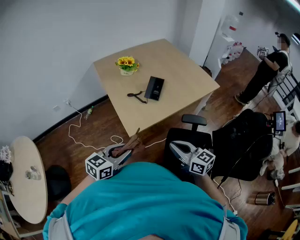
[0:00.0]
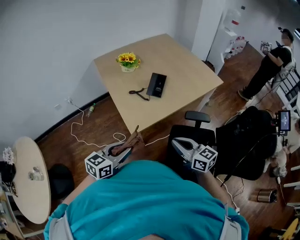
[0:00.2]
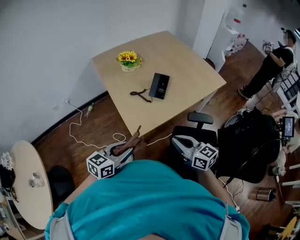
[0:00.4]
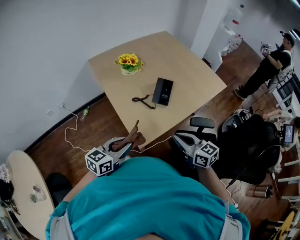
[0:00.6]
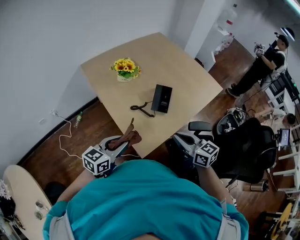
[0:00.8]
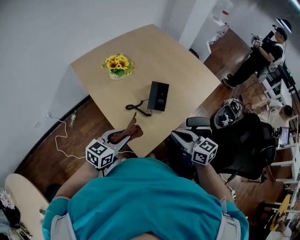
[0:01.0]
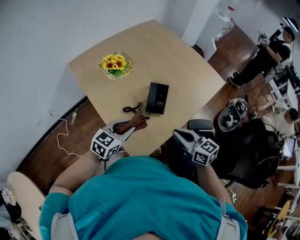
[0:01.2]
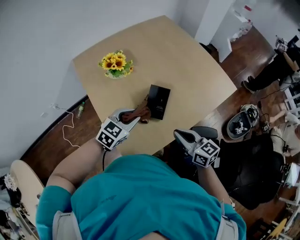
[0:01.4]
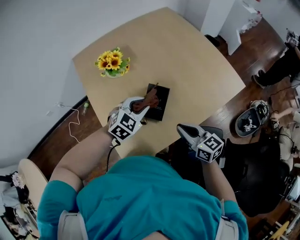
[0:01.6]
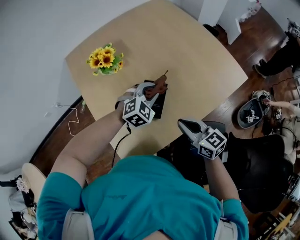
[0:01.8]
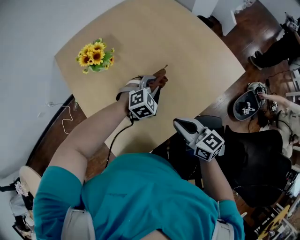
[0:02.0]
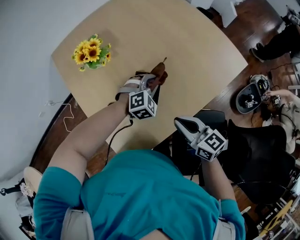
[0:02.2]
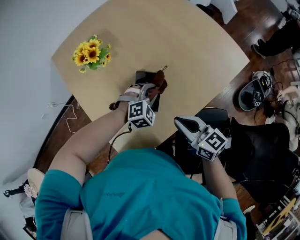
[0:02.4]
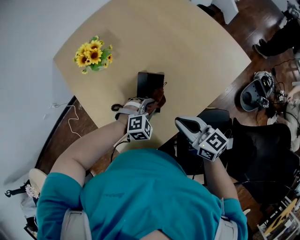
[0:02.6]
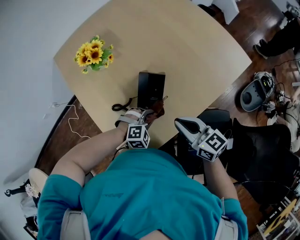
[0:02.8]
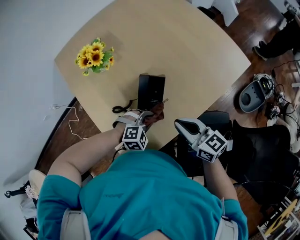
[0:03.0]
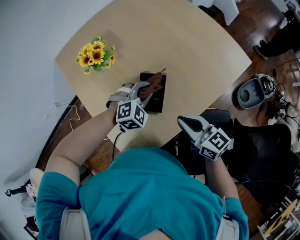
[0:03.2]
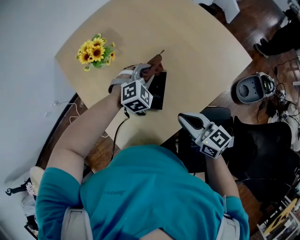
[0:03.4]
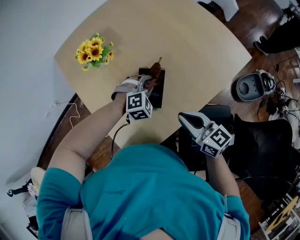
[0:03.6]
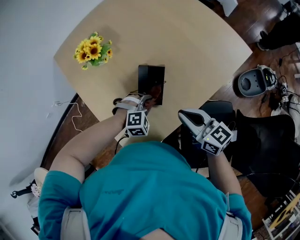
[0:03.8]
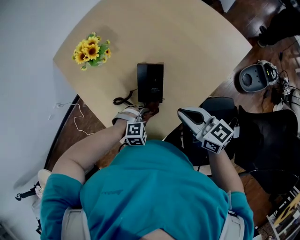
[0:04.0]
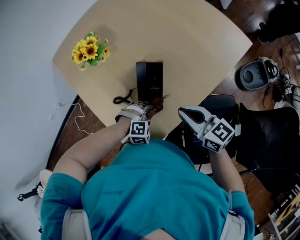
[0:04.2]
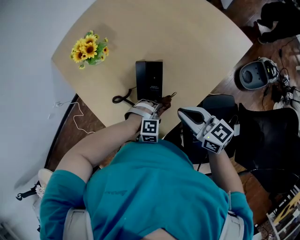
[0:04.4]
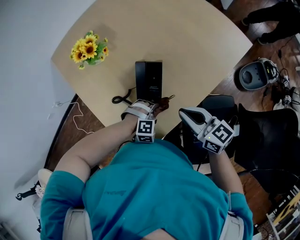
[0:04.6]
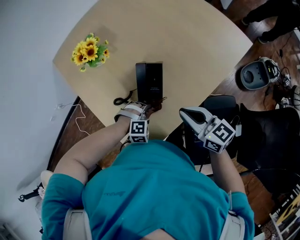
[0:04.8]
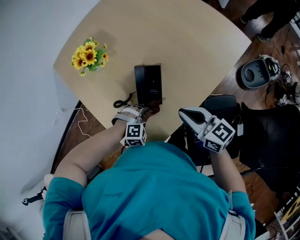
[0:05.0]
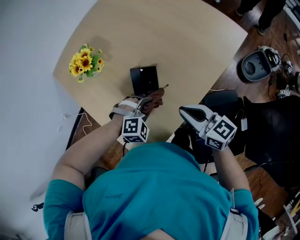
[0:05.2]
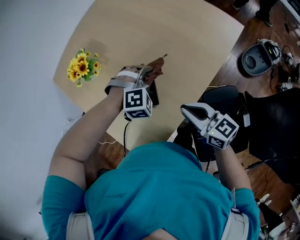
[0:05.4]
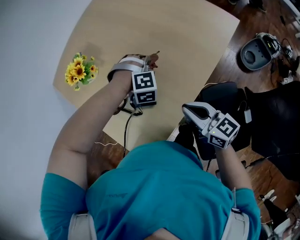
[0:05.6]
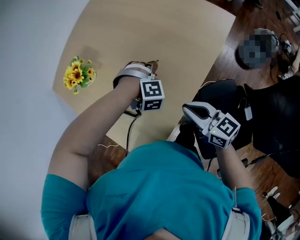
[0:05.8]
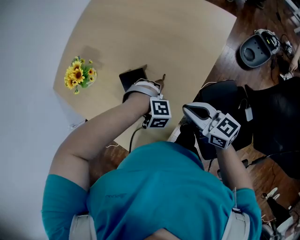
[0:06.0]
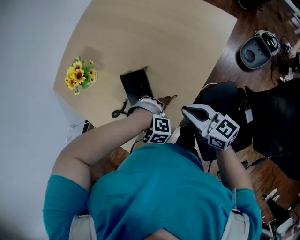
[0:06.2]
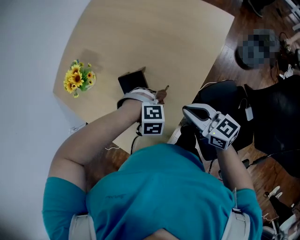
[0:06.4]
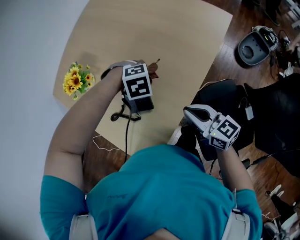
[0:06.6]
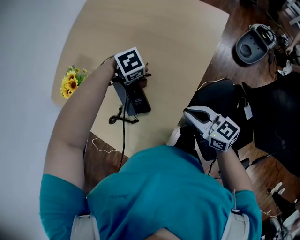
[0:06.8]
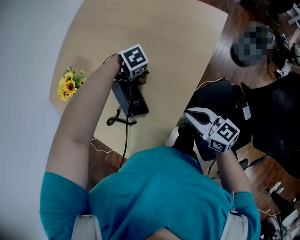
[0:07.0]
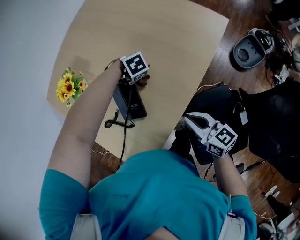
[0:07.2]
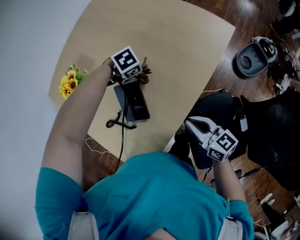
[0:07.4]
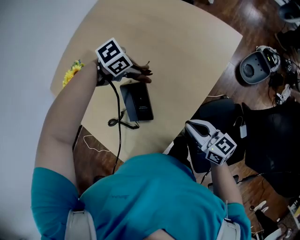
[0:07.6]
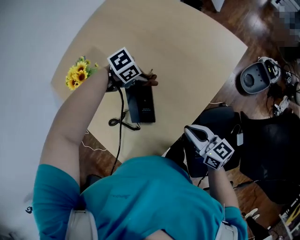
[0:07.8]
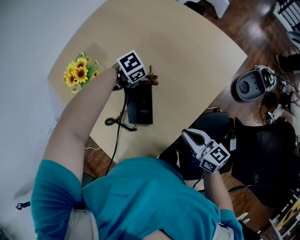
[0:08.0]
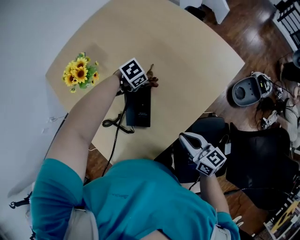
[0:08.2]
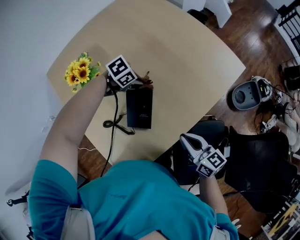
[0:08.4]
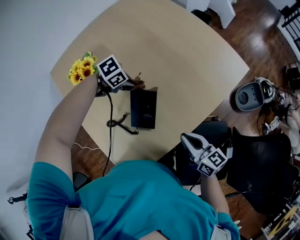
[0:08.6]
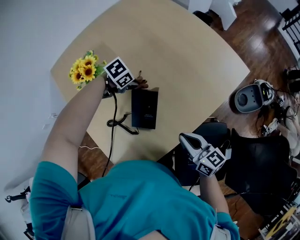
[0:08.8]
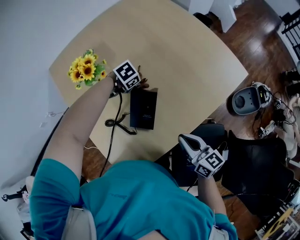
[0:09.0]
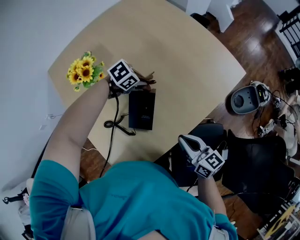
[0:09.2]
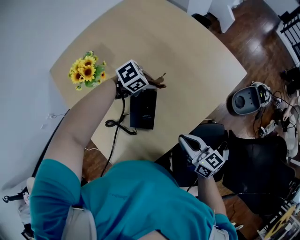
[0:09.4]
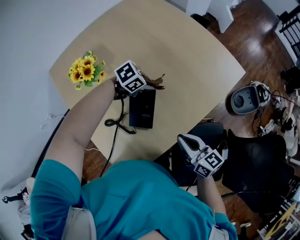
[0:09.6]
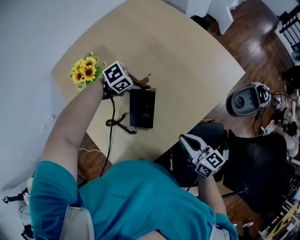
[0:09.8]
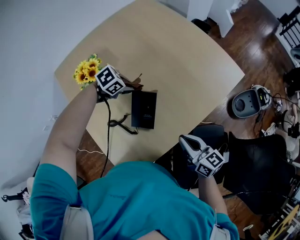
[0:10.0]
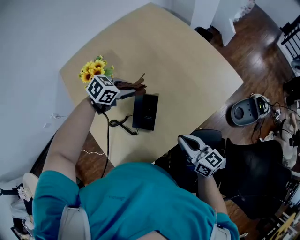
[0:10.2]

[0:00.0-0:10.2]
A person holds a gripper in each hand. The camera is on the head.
0:00.0 to 0:01.4: The grippers both shift forward by about 40 cm. The left gripper swivels about 30 degrees.
0:01.4 to 0:03.0: The left gripper is displaced downward and to the right by roughly 20 cm, and changes its angle by some 50 degrees. Meanwhile the right gripper is displaced forward by roughly 5 cm.
0:03.0 to 0:04.4: The left gripper heads downward, covering approximately 5 cm, and goes forward and returns, about 20 cm each way.
0:04.4 to 0:05.8: The right gripper goes approximately 5 cm to the right; the left gripper goes approximately 20 cm forward, to the right and upward, and swivels approximately 30 degrees.
0:05.8 to 0:07.2: The left gripper goes up and down, some 10 cm each way, reversing 2 times, and swivels some 50 degrees, while the right gripper ends up about 5 cm from where it was.
0:07.2 to 0:08.8: The right gripper changes place by approximately 5 cm; the left gripper swings up and down, roughly 10 cm each way, with 2 reversals, and turns by approximately 40 degrees.
0:08.8 to 0:10.2: The left gripper moves upward, roughly 10 cm, and rotates approximately 30 degrees.

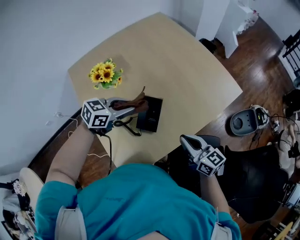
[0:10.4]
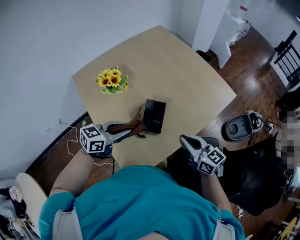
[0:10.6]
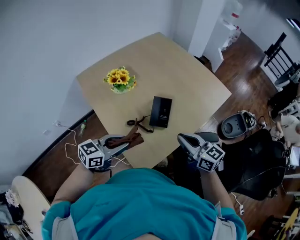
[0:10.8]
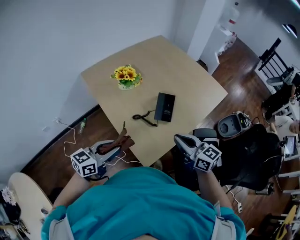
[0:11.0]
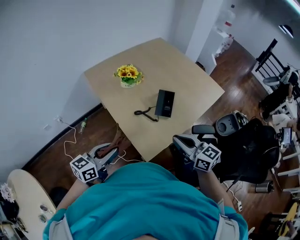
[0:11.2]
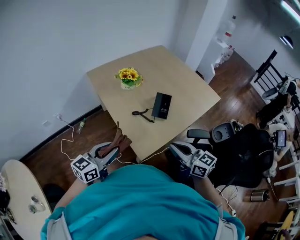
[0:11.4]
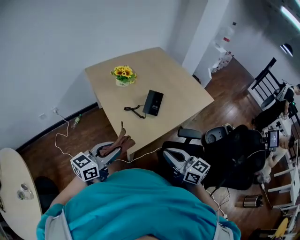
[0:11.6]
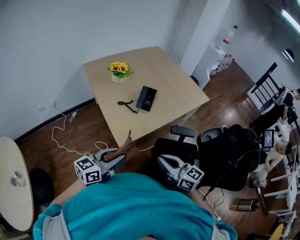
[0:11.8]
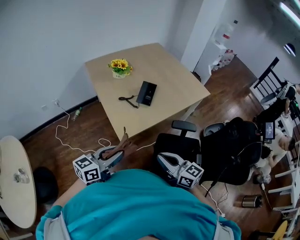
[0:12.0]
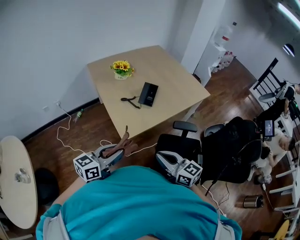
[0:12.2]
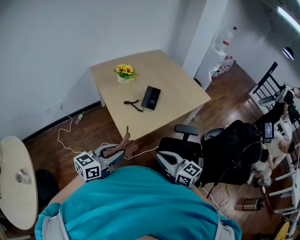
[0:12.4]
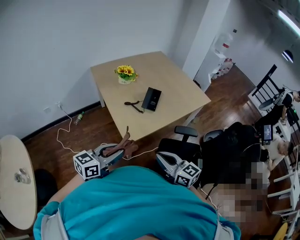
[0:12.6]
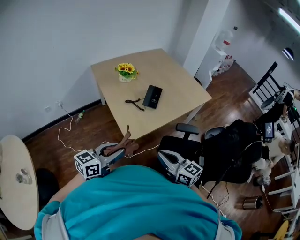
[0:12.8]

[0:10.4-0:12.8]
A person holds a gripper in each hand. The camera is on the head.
0:10.4 to 0:11.6: The two grippers go about 40 cm backward. The left gripper turns by about 30 degrees.
0:11.6 to 0:12.8: Both grippers travel together backward, roughly 10 cm.

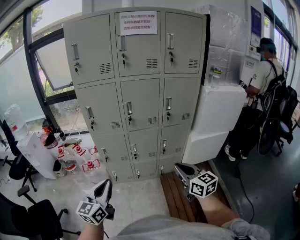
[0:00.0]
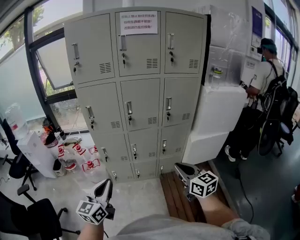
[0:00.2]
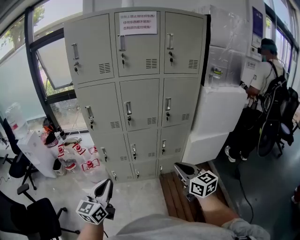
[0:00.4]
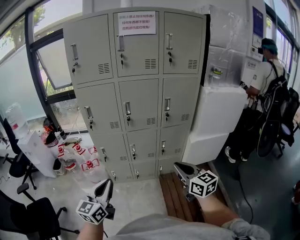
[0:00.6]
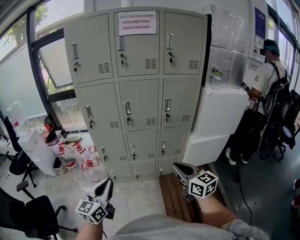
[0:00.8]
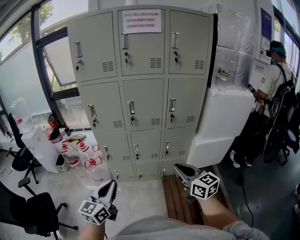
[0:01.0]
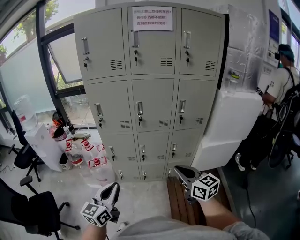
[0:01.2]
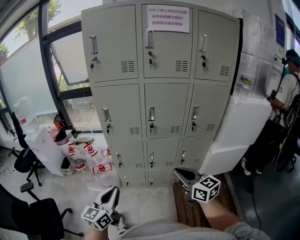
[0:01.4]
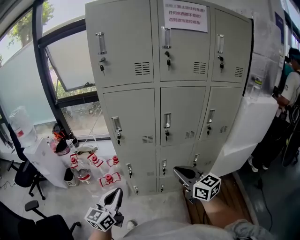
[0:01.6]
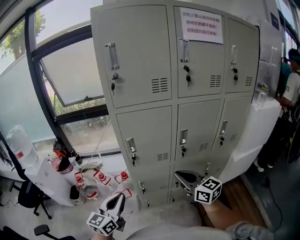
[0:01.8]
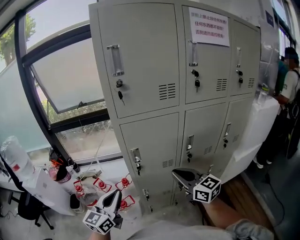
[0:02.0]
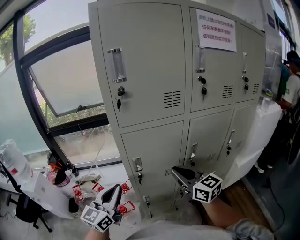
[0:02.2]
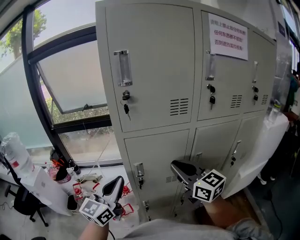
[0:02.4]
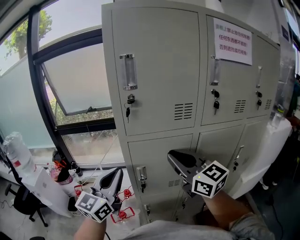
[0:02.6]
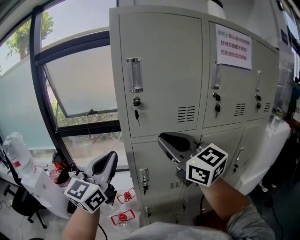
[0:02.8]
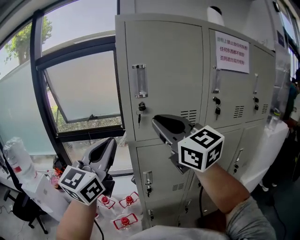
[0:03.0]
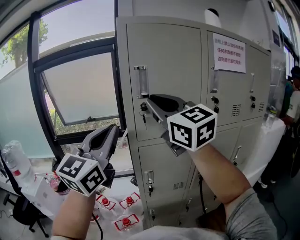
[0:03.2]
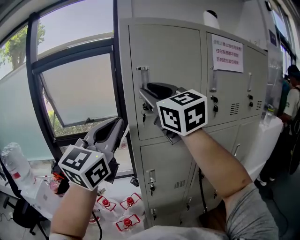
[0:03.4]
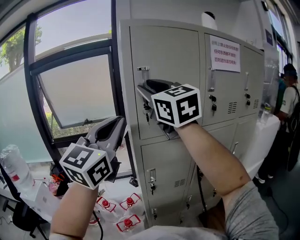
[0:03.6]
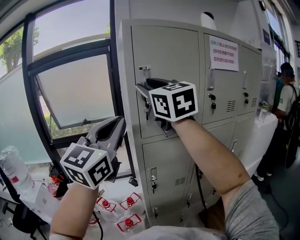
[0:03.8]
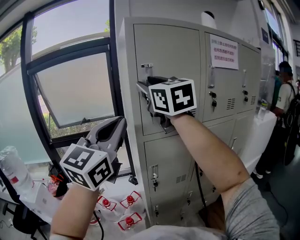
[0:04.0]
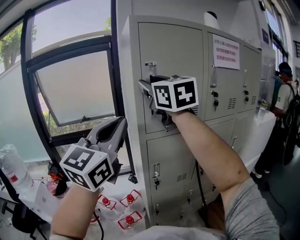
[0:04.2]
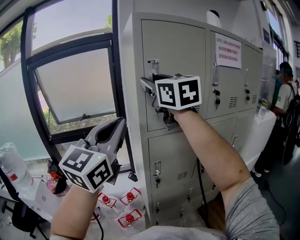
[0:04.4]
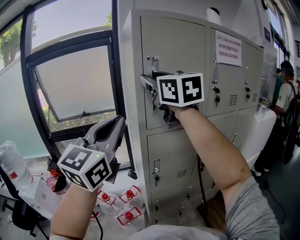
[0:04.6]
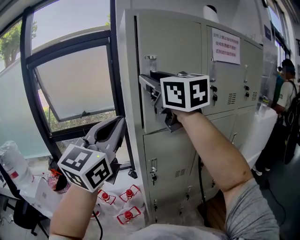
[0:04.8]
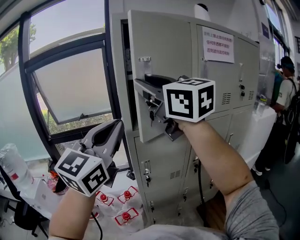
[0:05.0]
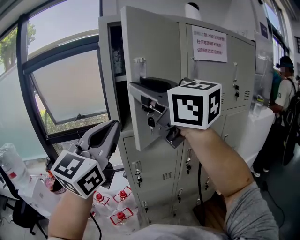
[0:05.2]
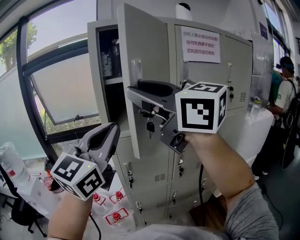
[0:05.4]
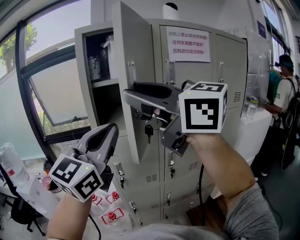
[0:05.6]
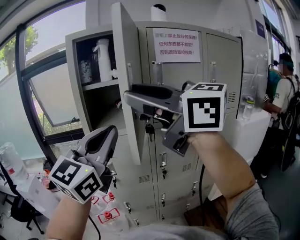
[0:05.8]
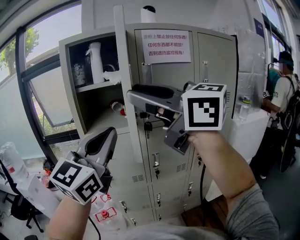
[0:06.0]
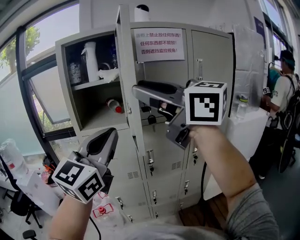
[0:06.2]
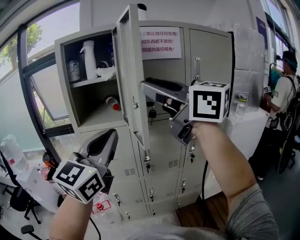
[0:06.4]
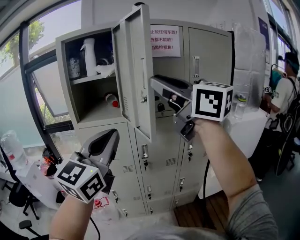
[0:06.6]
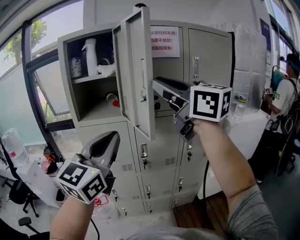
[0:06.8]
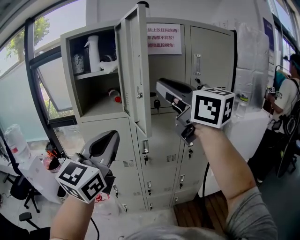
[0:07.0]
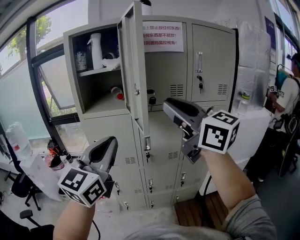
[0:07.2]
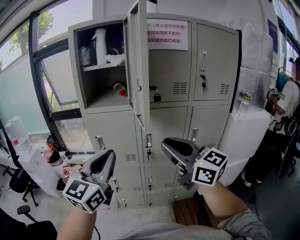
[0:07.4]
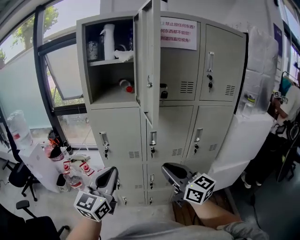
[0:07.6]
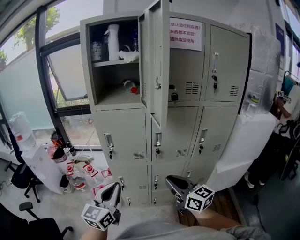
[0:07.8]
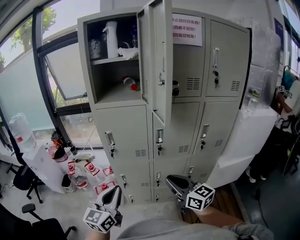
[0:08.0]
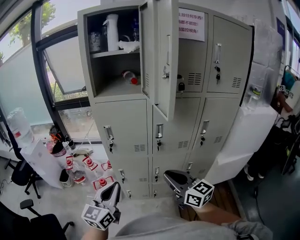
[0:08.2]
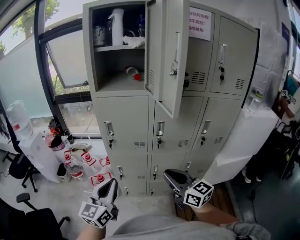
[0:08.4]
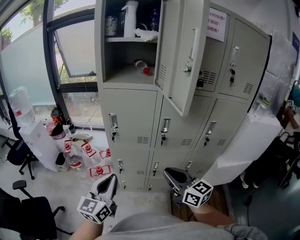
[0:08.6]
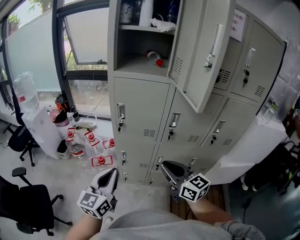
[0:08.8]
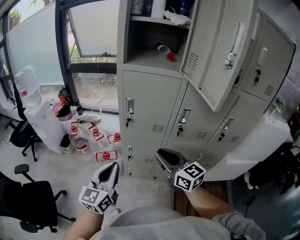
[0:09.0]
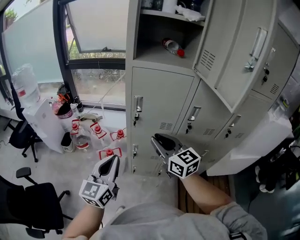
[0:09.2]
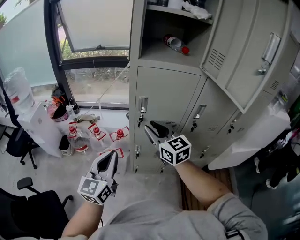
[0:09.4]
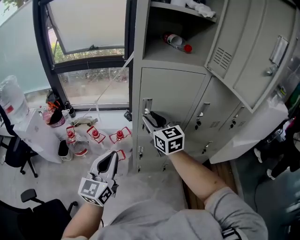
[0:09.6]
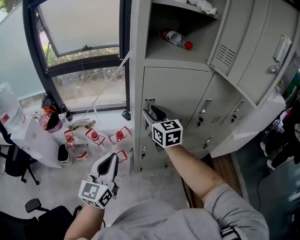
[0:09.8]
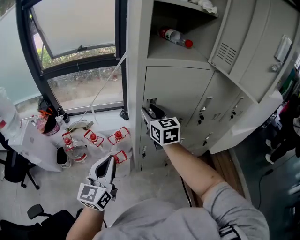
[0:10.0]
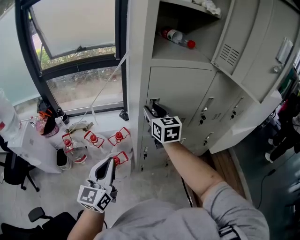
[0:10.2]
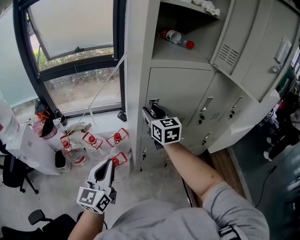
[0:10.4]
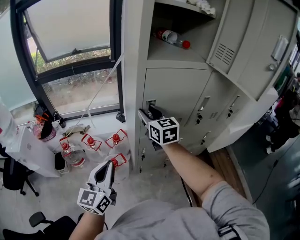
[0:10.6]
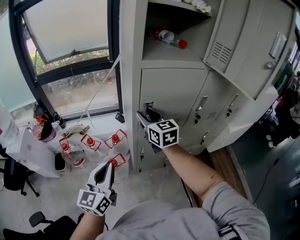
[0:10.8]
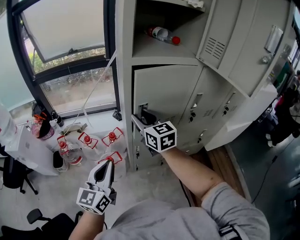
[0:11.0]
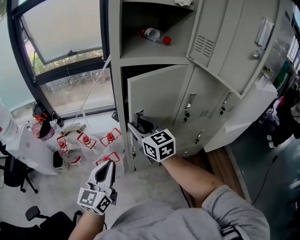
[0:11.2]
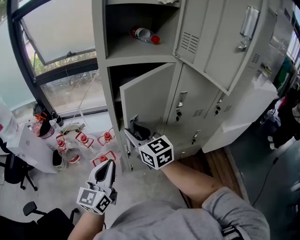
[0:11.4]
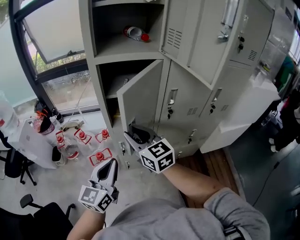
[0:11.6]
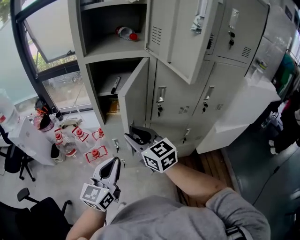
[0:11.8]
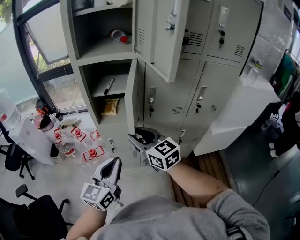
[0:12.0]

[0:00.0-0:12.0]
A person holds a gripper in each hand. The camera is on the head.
0:00.0 to 0:01.6: The grippers both shift forward and to the left by about 25 cm.
0:01.6 to 0:03.0: The right gripper goes roughly 50 cm upward, forward and to the left, and changes its angle by roughly 30 degrees. Meanwhile the left gripper goes roughly 50 cm upward and forward, and swivels approximately 30 degrees.
0:03.0 to 0:04.4: The left gripper changes place by roughly 5 cm. Meanwhile the right gripper goes some 15 cm upward, to the left and forward, and opens.
0:04.4 to 0:06.0: The left gripper moves to the right, roughly 25 cm. Meanwhile the right gripper moves to the right and backward, about 35 cm, and changes its angle by about 40 degrees.
0:06.0 to 0:07.6: Both grippers travel together downward, approximately 30 cm. The left gripper turns by some 20 degrees.
0:07.6 to 0:09.0: The right gripper travels to the left, downward and forward by approximately 20 cm. Meanwhile the left gripper moves downward and to the left, some 15 cm.
0:09.0 to 0:10.4: The right gripper moves about 30 cm, changes its angle by about 30 degrees, and opens up; the left gripper shifts by approximately 25 cm.
0:10.4 to 0:12.0: The left gripper is displaced to the right by approximately 30 cm. Meanwhile the right gripper goes approximately 30 cm backward and to the right, and rotates approximately 30 degrees.
